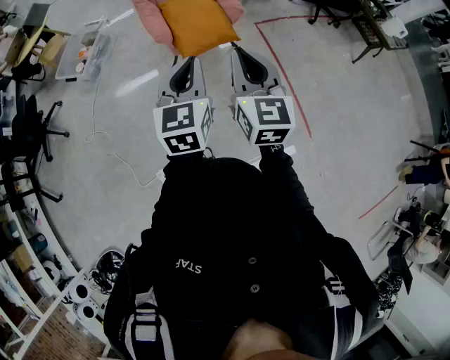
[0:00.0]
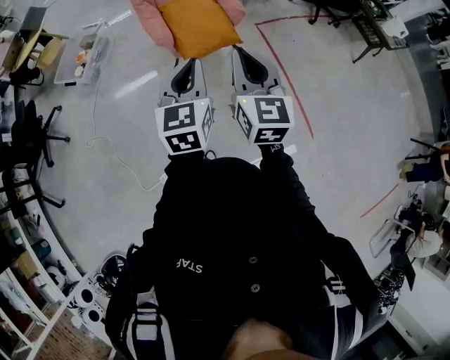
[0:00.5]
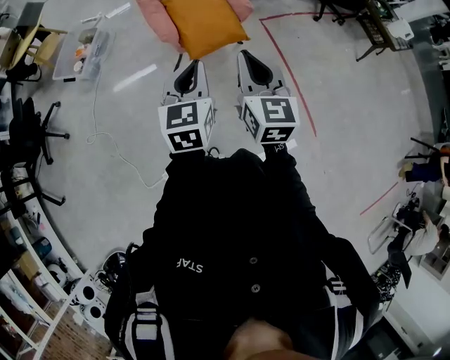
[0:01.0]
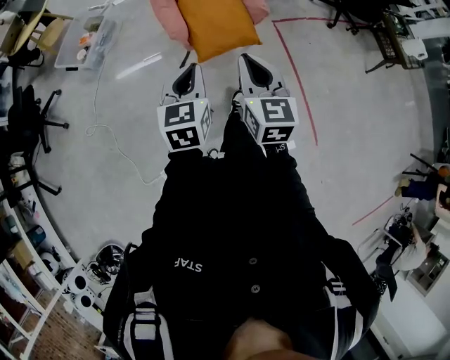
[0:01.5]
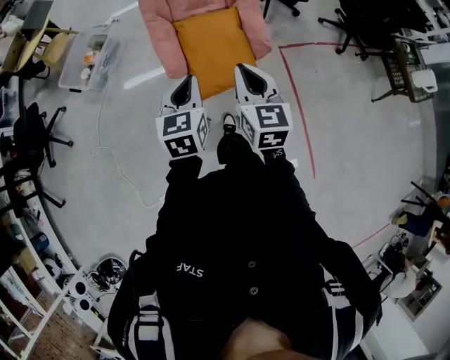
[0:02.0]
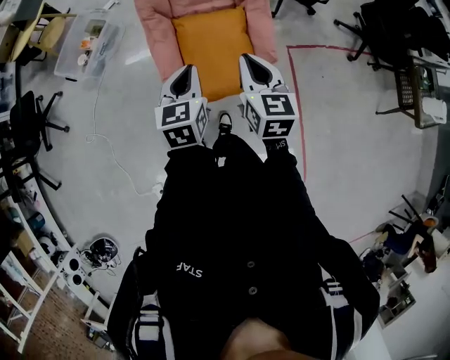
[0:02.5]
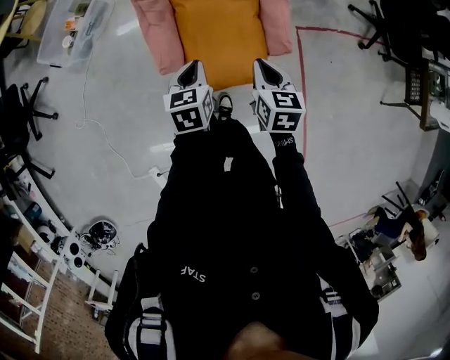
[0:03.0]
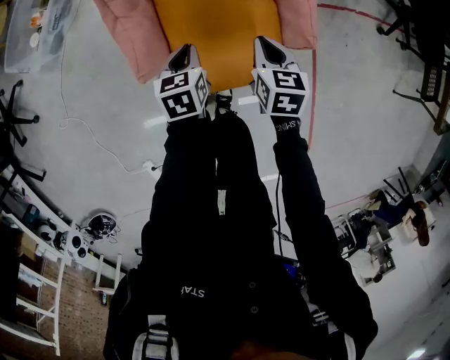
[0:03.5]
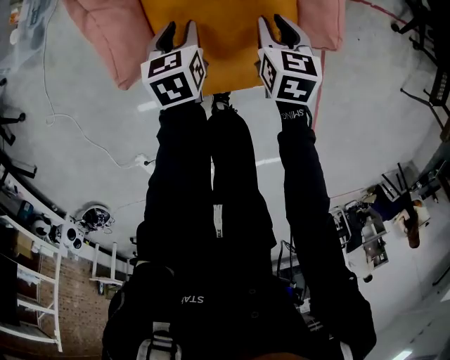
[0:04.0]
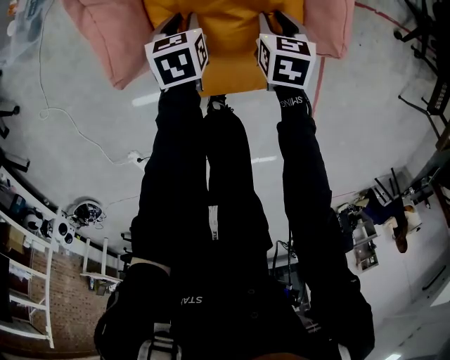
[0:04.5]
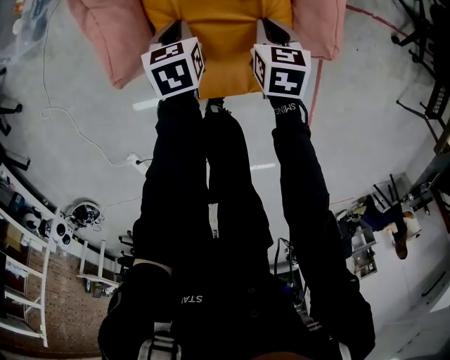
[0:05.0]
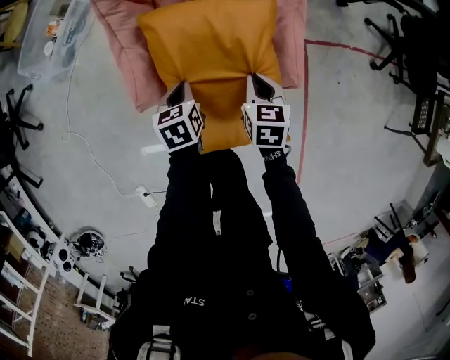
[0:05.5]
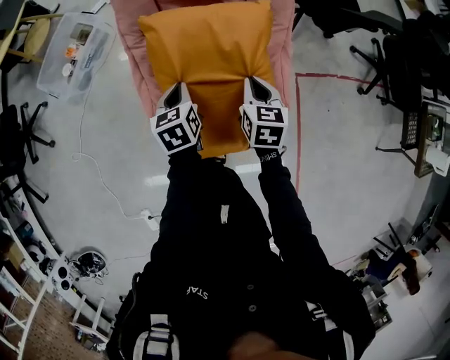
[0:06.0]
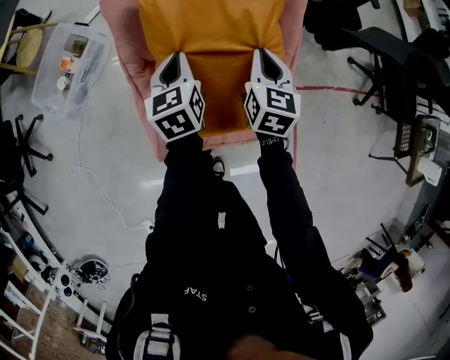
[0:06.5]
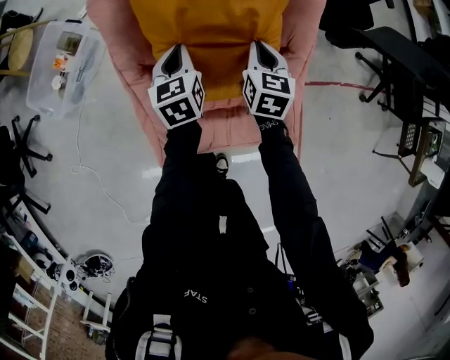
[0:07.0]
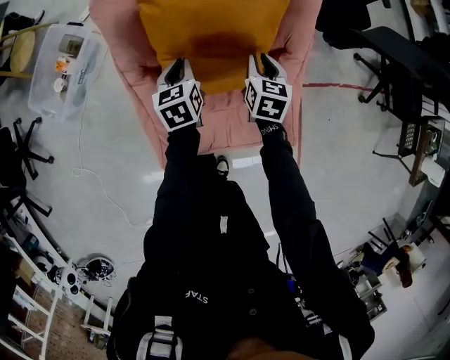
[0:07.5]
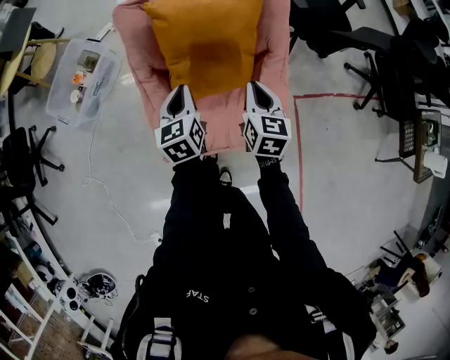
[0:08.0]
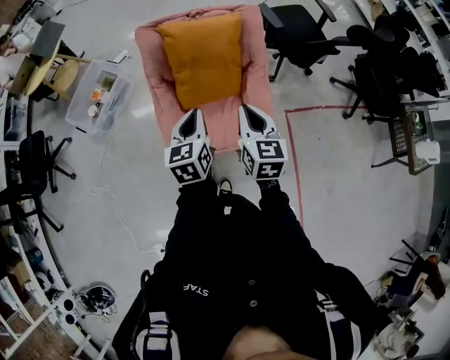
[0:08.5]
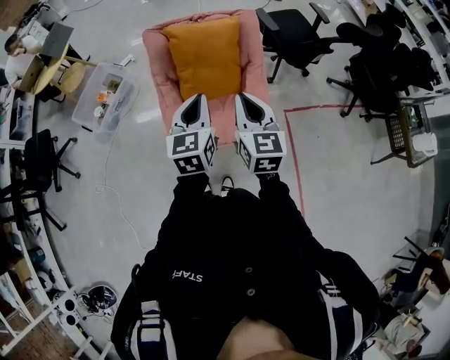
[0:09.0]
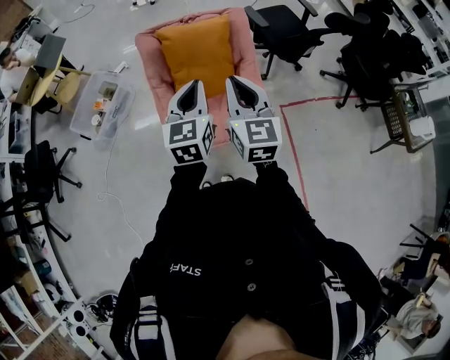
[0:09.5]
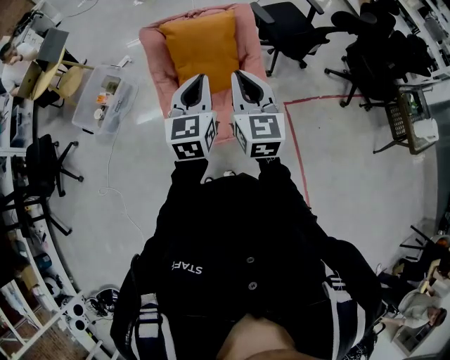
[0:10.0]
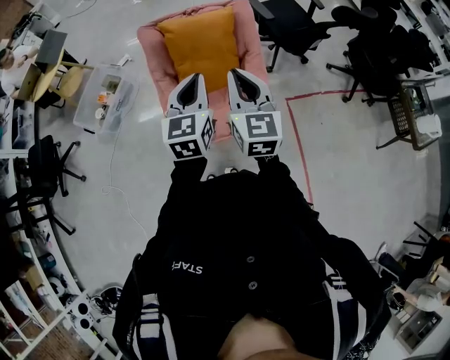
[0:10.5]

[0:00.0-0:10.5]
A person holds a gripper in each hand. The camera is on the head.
0:00.0 to 0:02.0: The grippers both shift forward by some 35 cm.
0:02.0 to 0:04.0: Both grippers move downward and forward, some 60 cm. The right gripper tilts its fingers some 30 degrees downward, and opens its fingers. Meanwhile the left gripper turns by approximately 30 degrees, and opens up.
0:04.0 to 0:06.5: The two grippers go approximately 40 cm upward and forward. The left gripper swivels roughly 20 degrees, and closes its fingers. The right gripper swivels approximately 20 degrees, and closes up.
0:06.5 to 0:08.5: The two grippers go approximately 35 cm backward and upward. The right gripper opens, then closes again.
0:08.5 to 0:10.5: The grippers both shift upward by about 15 cm.

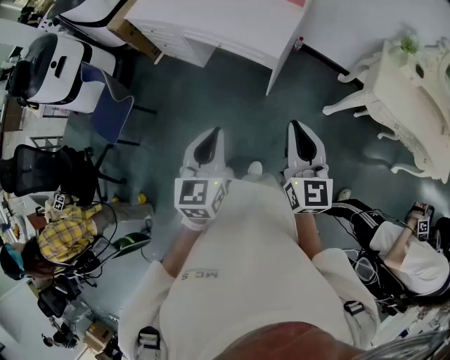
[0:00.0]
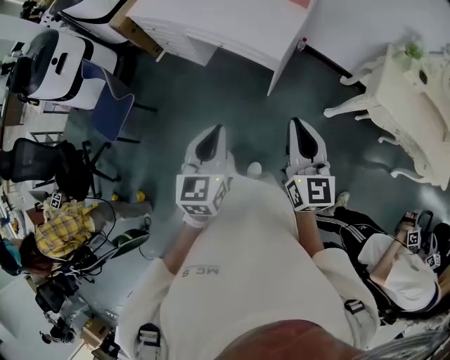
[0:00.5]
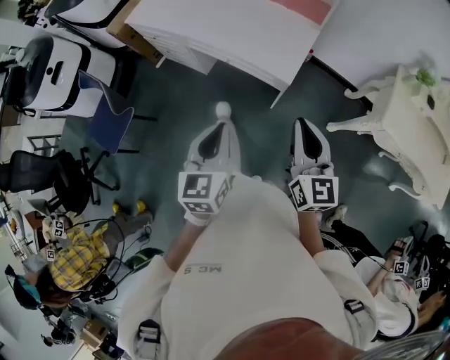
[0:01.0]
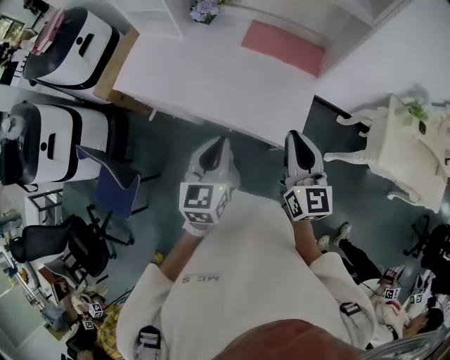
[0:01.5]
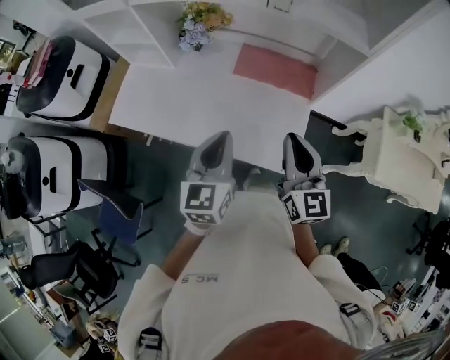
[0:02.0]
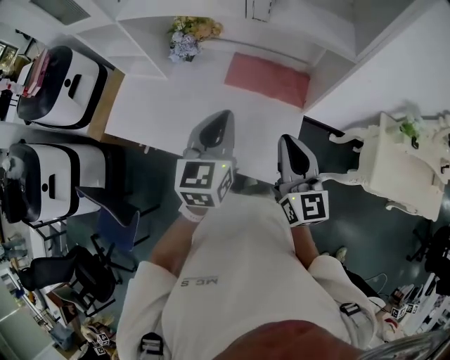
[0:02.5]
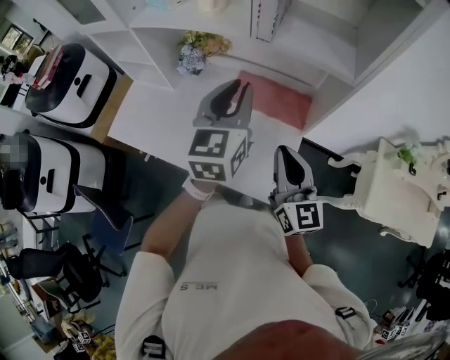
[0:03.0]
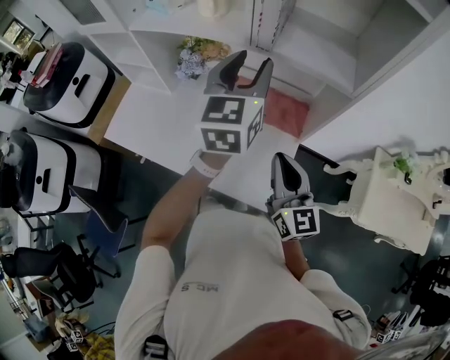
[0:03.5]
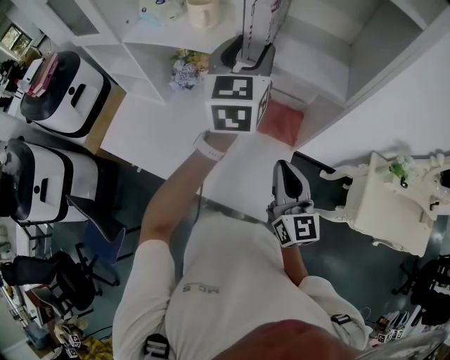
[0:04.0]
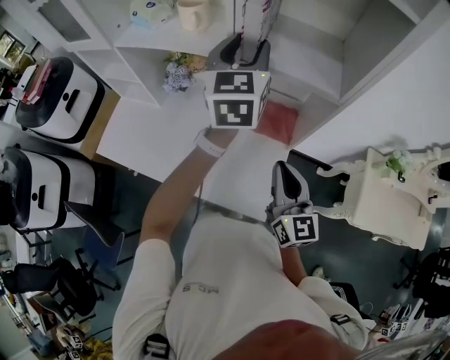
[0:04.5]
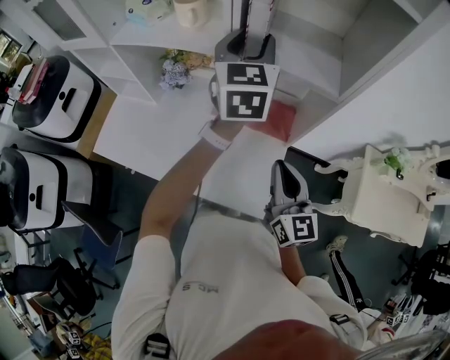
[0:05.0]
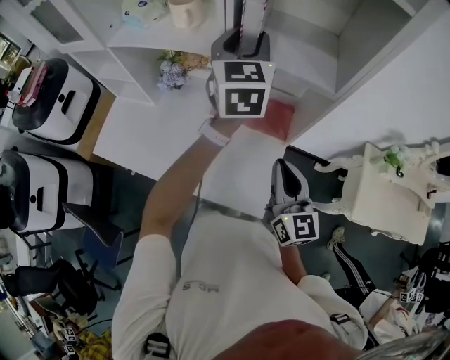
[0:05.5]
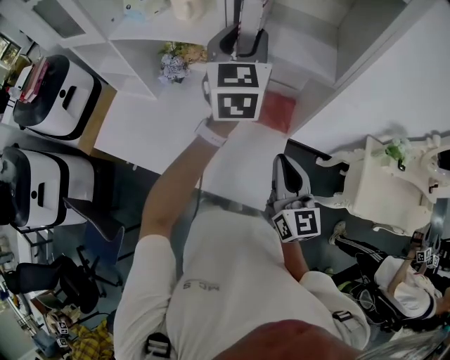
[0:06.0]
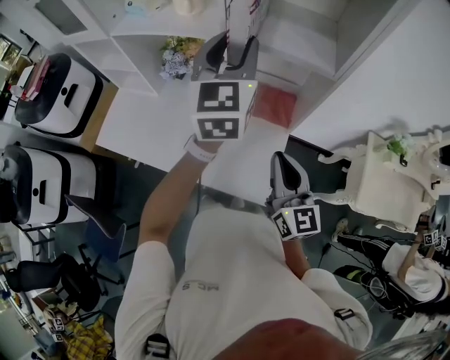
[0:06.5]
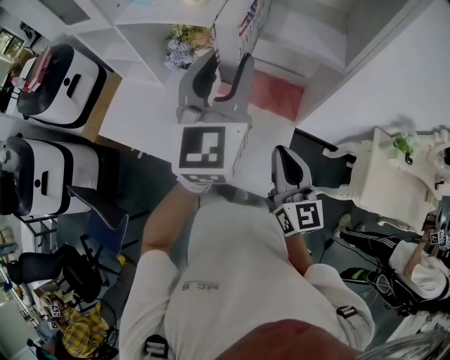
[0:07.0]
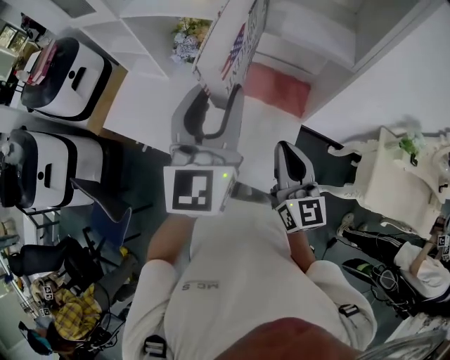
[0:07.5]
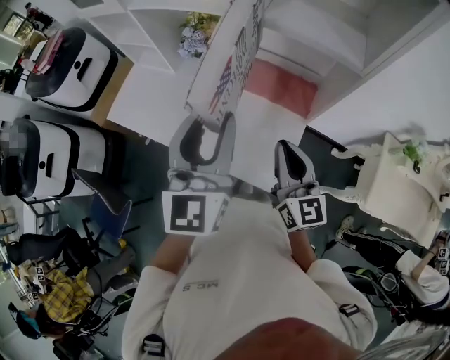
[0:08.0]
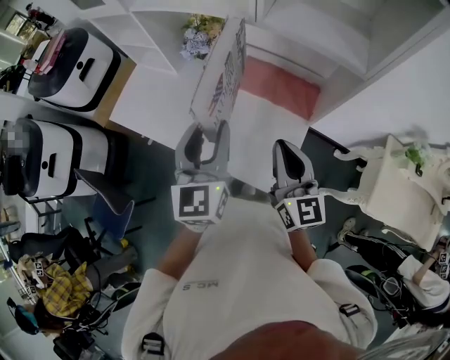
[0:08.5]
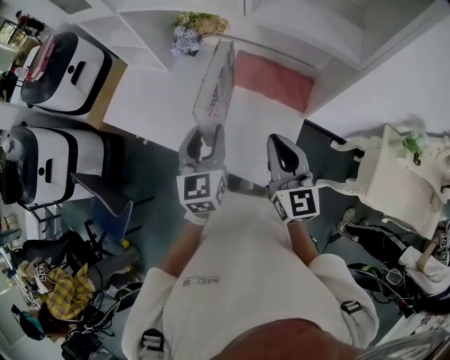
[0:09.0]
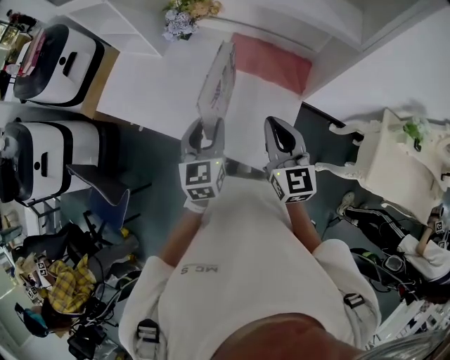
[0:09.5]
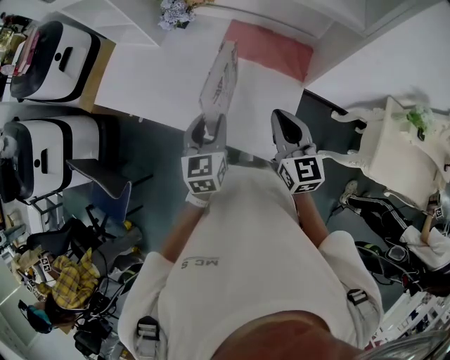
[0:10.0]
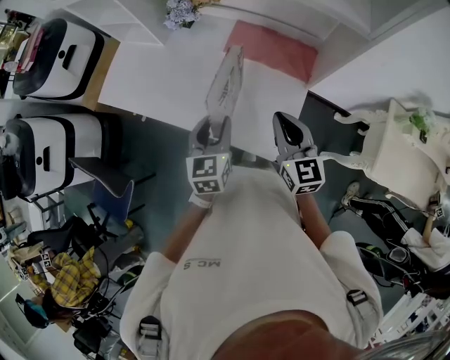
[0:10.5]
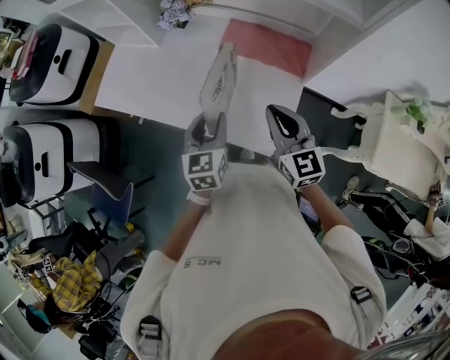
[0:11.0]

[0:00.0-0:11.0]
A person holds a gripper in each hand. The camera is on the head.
0:00.0 to 0:02.0: The two grippers travel together, forward, roughly 60 cm.
0:02.0 to 0:03.5: The right gripper shifts some 10 cm forward and to the right. Meanwhile the left gripper is displaced forward, upward and to the right by about 30 cm, and opens.
0:03.5 to 0:05.5: The right gripper ends up about 5 cm from where it was, while the left gripper heads forward, covering roughly 10 cm.
0:05.5 to 0:07.5: The left gripper goes about 20 cm backward. Meanwhile the right gripper changes place by about 5 cm.
0:07.5 to 0:09.0: The left gripper travels downward by roughly 20 cm, and rotates about 20 degrees.
0:09.0 to 0:11.0: The left gripper moves downward, about 10 cm. The right gripper shifts about 5 cm downward.

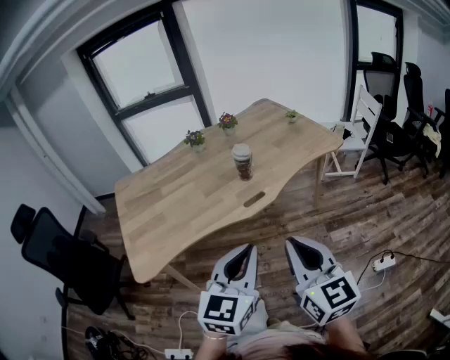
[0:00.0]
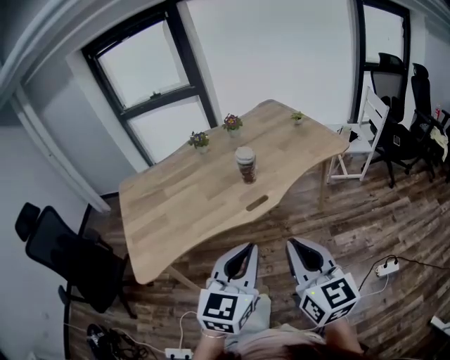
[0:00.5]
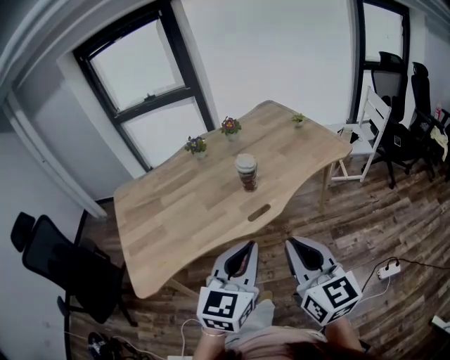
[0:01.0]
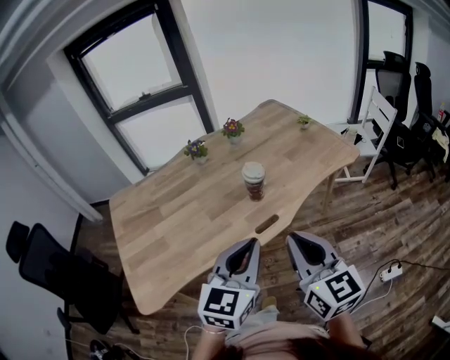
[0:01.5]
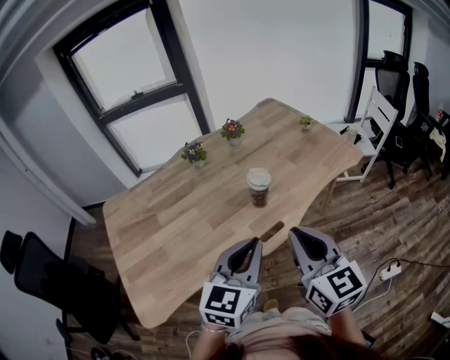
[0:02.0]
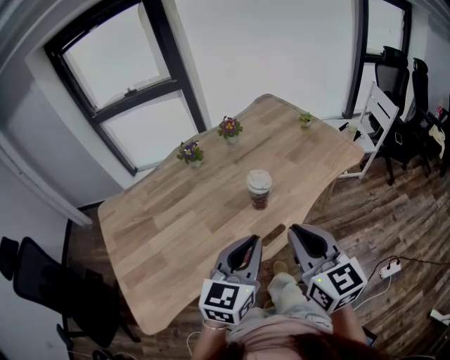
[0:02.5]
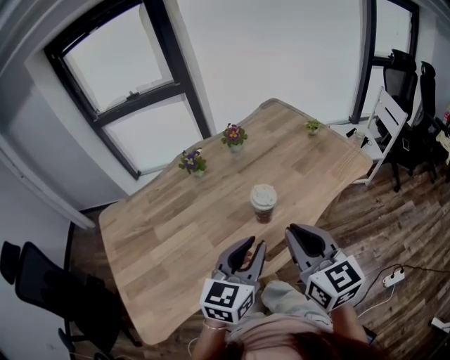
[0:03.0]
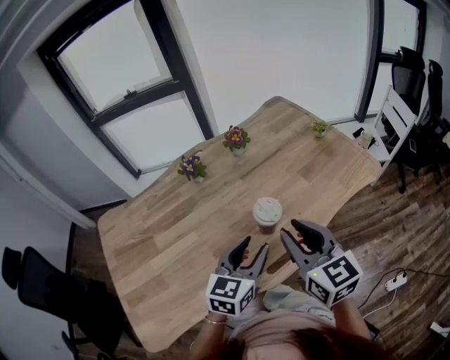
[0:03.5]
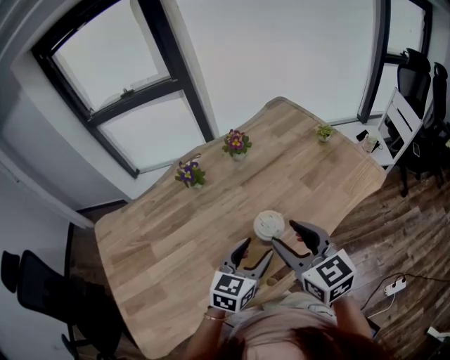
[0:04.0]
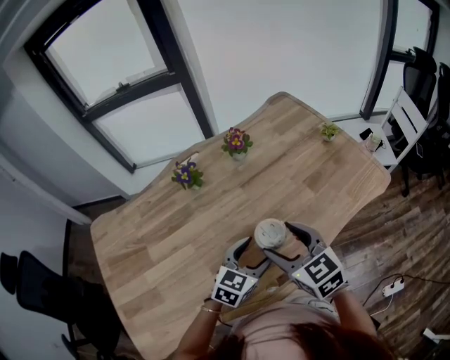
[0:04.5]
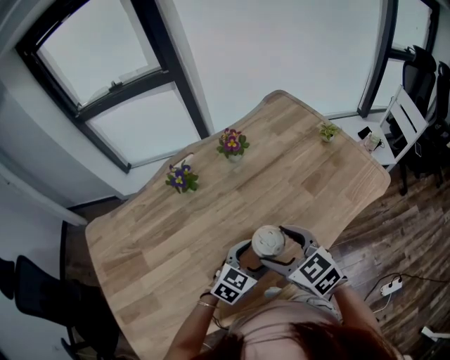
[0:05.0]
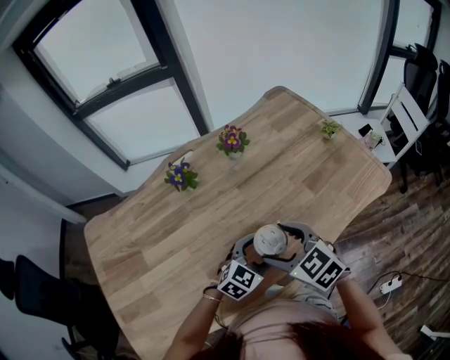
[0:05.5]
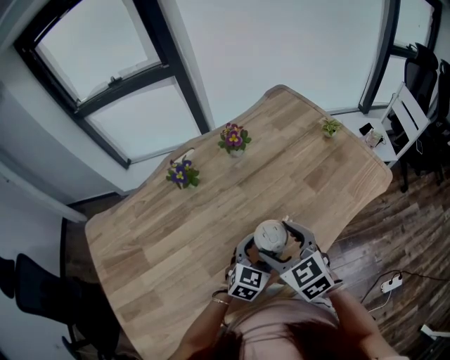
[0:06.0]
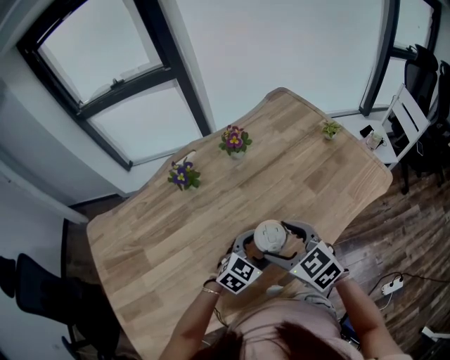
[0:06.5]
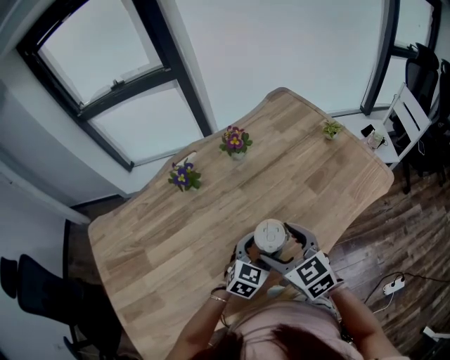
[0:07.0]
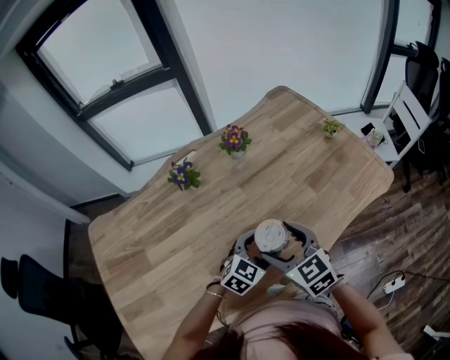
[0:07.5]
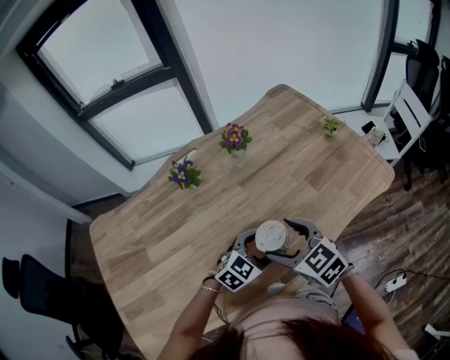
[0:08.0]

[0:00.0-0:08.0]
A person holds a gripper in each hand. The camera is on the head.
0:00.0 to 0:02.0: Both grippers travel together forward, roughly 20 cm.
0:02.0 to 0:04.0: The right gripper goes some 20 cm forward, and opens its fingers. The left gripper is displaced forward and downward by some 25 cm, and opens.
0:04.0 to 0:06.0: The left gripper shifts approximately 10 cm downward and forward, while the right gripper is displaced downward by about 10 cm, and opens its fingers.
0:06.0 to 0:08.0: There are only small adjustments of the grippers.
